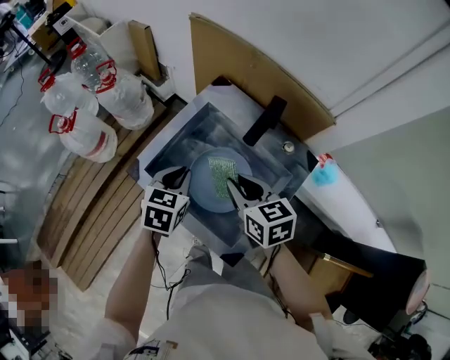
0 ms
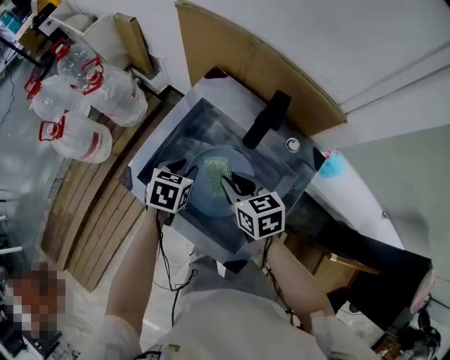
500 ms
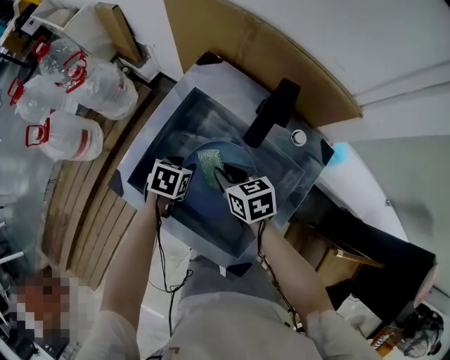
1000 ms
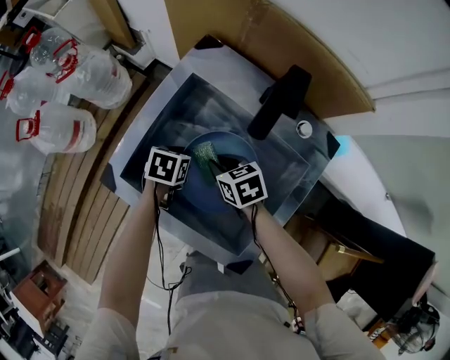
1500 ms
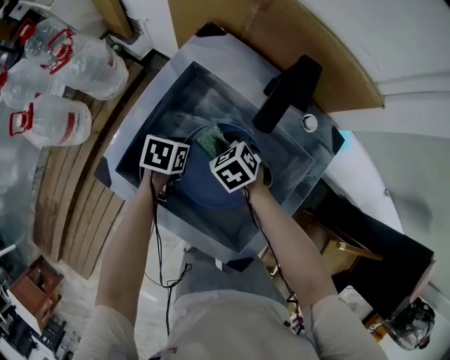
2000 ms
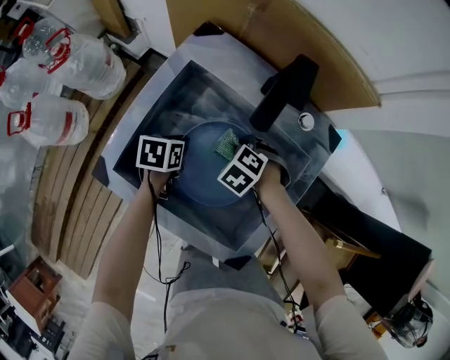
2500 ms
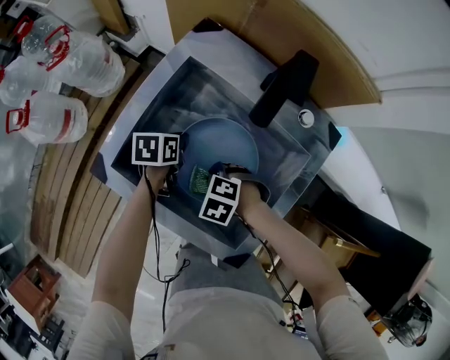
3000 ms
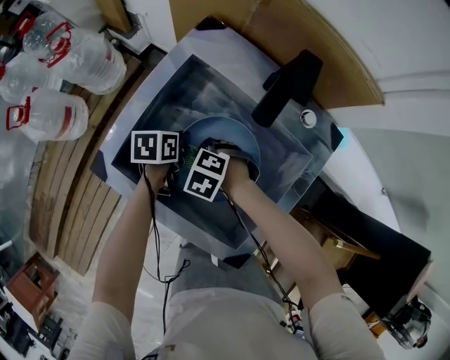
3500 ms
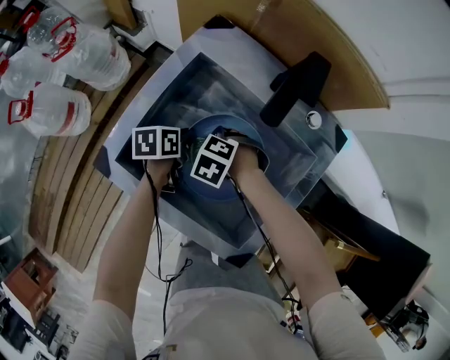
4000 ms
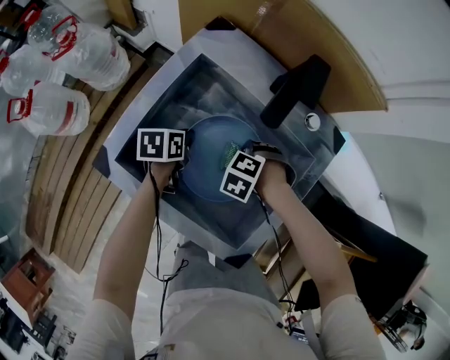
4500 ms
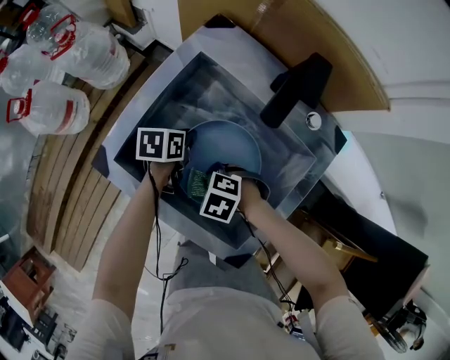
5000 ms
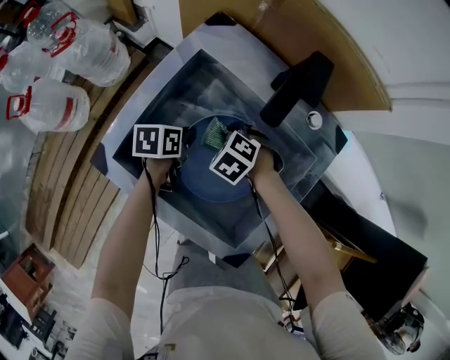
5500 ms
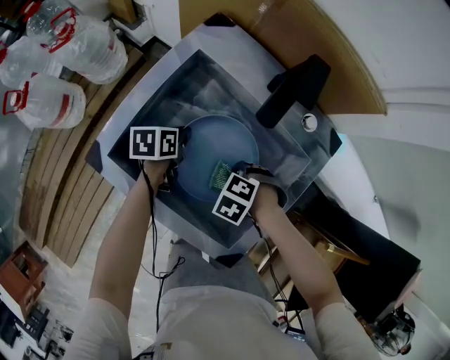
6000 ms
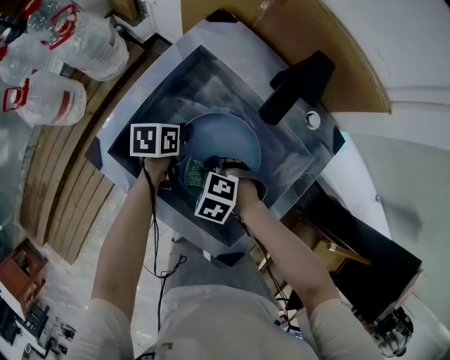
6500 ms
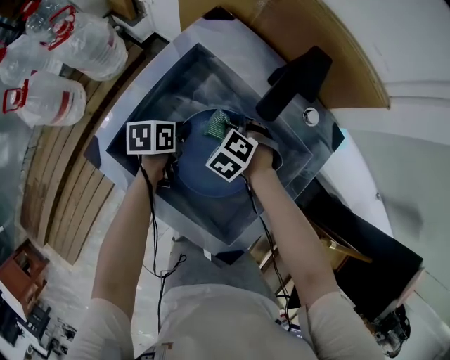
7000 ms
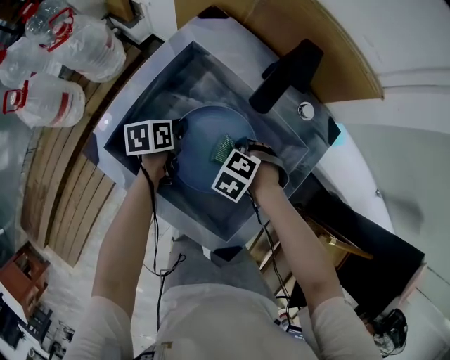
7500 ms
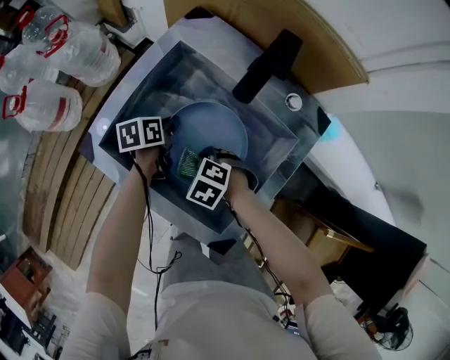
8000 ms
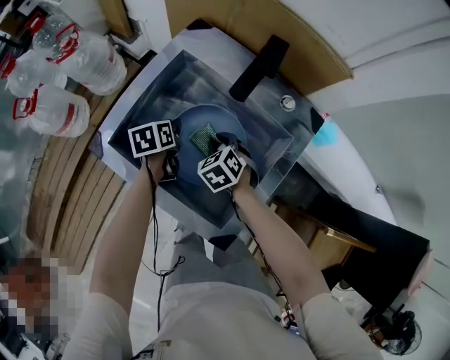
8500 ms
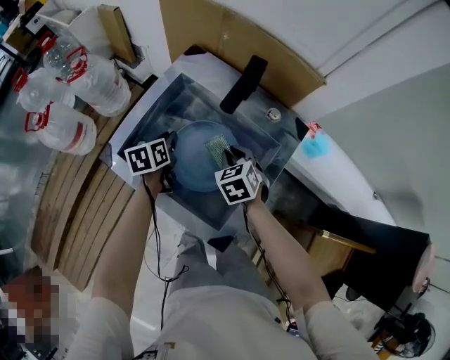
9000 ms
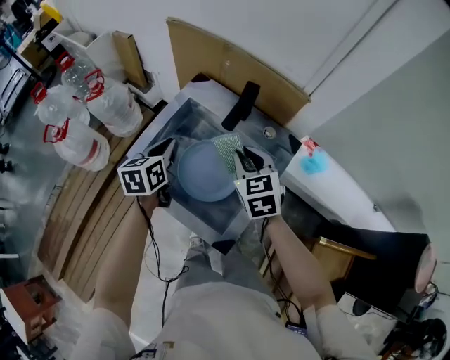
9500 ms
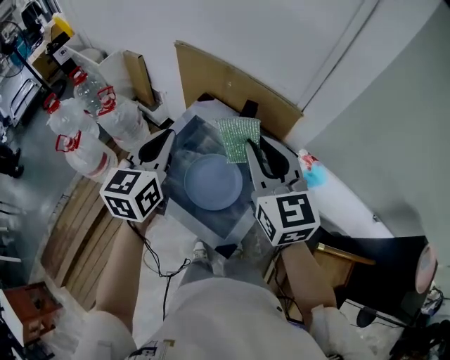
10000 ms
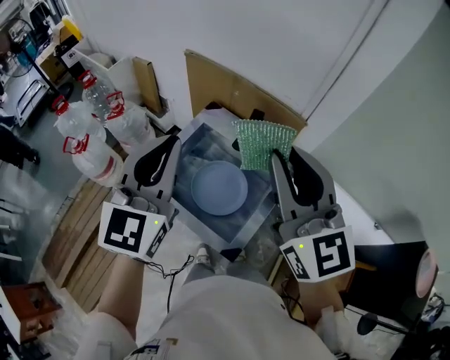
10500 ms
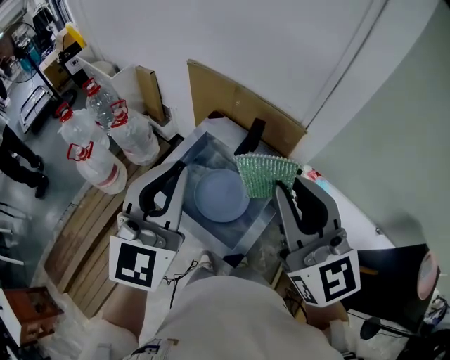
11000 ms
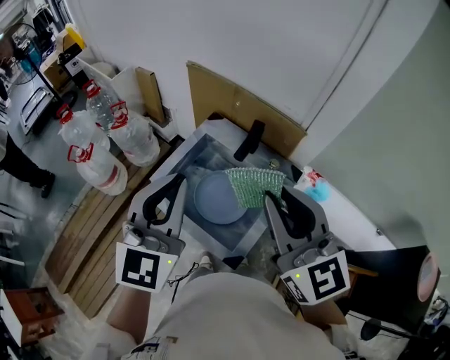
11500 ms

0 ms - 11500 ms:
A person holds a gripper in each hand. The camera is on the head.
0 ms - 2000 ms: The grippers both shift downward by approximately 25 cm. The right gripper points its fingers roughly 30 degrees further downward. The left gripper swivels about 30 degrees, and opens and closes again.
2000 ms - 4000 ms: The left gripper rotates some 20 degrees; the right gripper rotates some 30 degrees.
4000 ms - 6000 ms: The right gripper changes place by roughly 15 cm.
7500 ms - 9500 ms: Both grippers travel together upward, roughly 25 cm. The left gripper swivels some 30 degrees. Meanwhile the right gripper angles its fingers upward, by approximately 50 degrees.
9500 ms - 11500 ms: Both grippers travel together upward and backward, about 35 cm. The left gripper turns by roughly 50 degrees. The right gripper points its fingers roughly 40 degrees further upward.

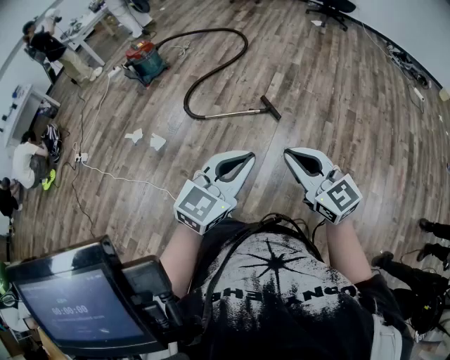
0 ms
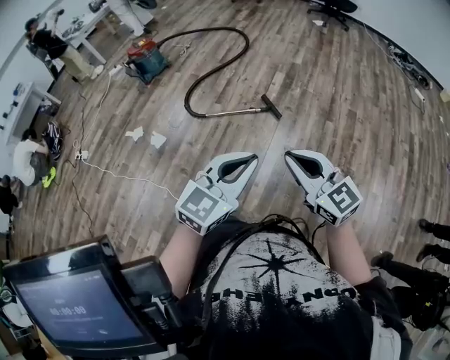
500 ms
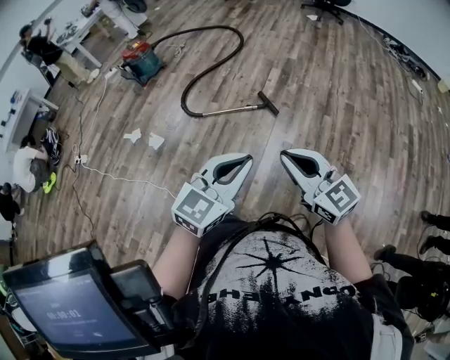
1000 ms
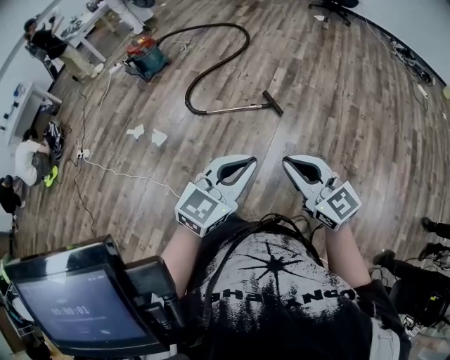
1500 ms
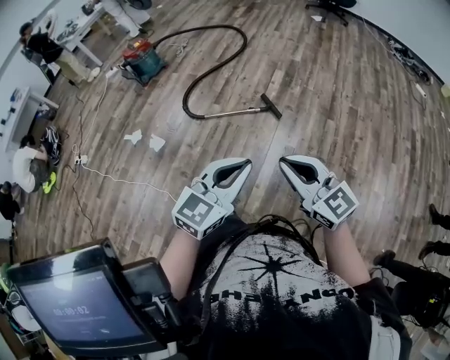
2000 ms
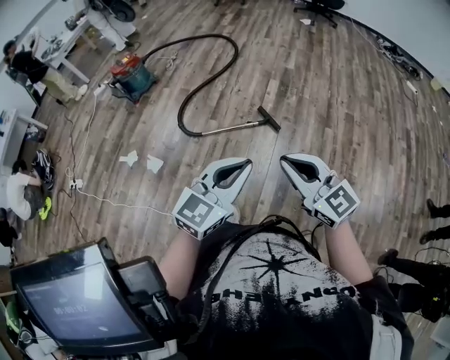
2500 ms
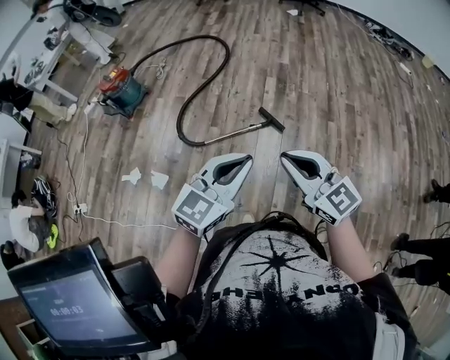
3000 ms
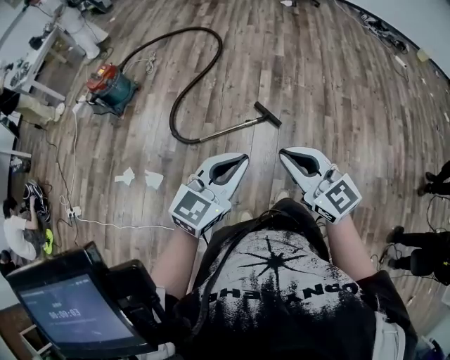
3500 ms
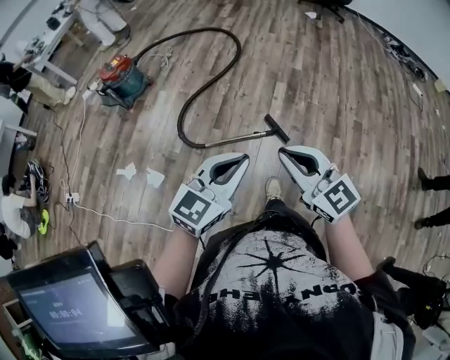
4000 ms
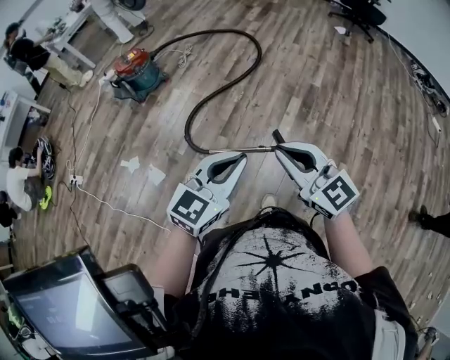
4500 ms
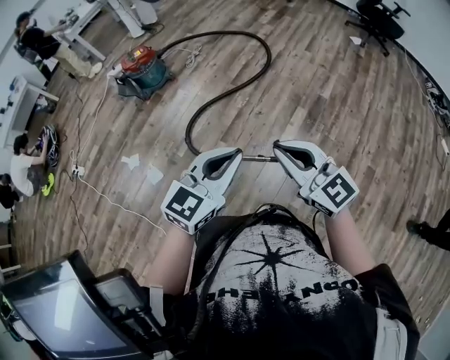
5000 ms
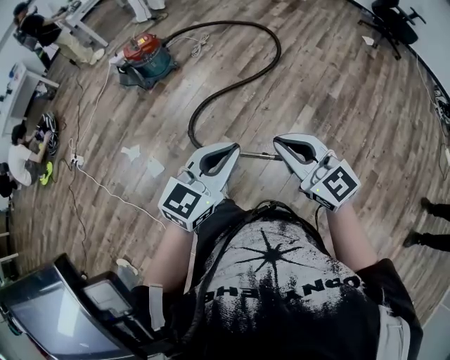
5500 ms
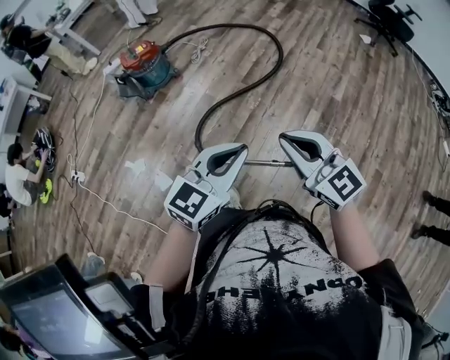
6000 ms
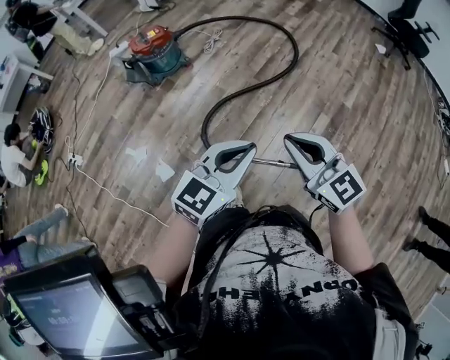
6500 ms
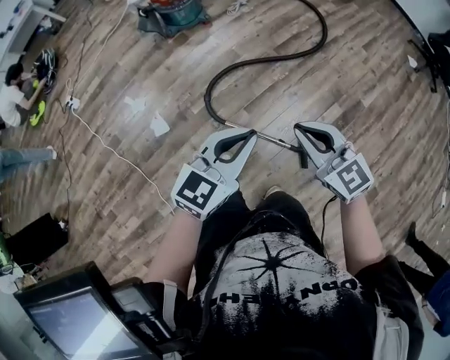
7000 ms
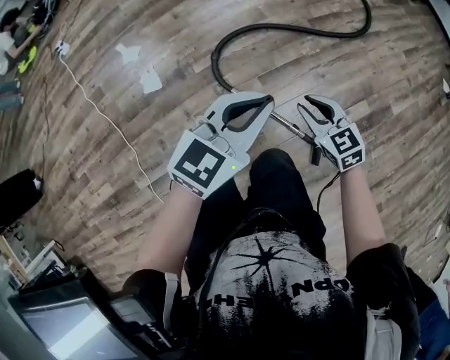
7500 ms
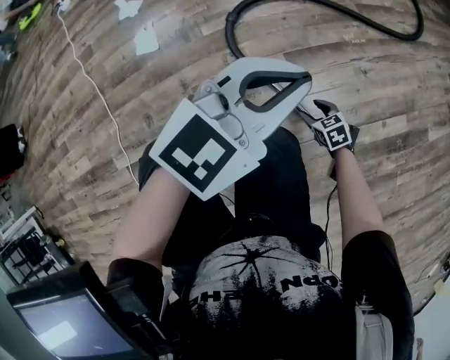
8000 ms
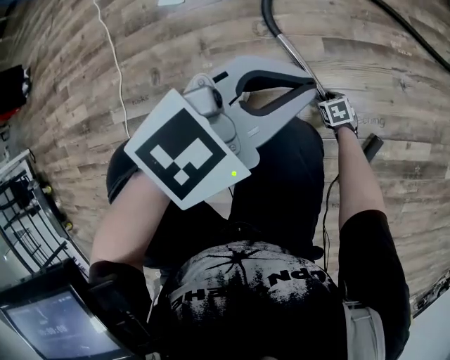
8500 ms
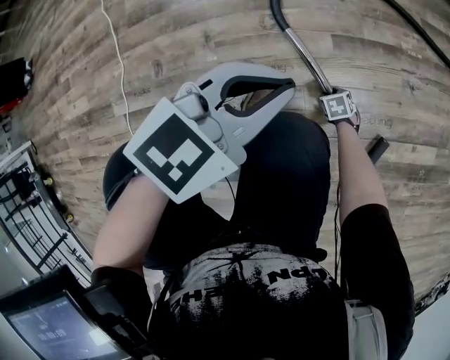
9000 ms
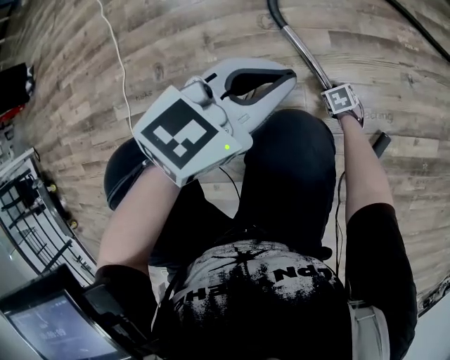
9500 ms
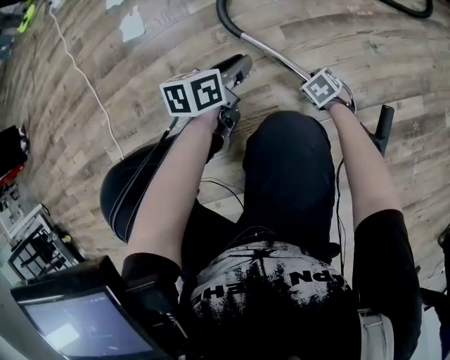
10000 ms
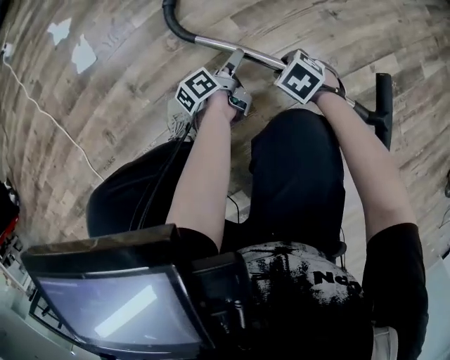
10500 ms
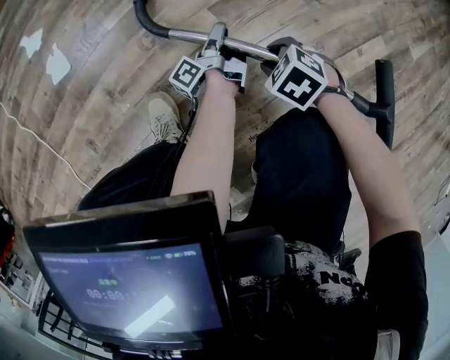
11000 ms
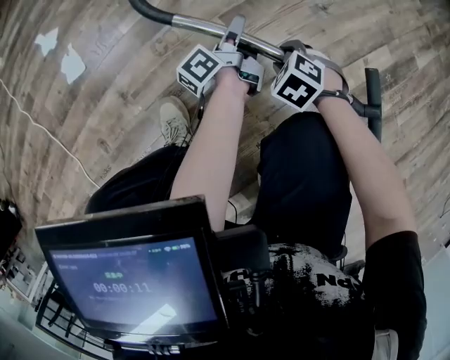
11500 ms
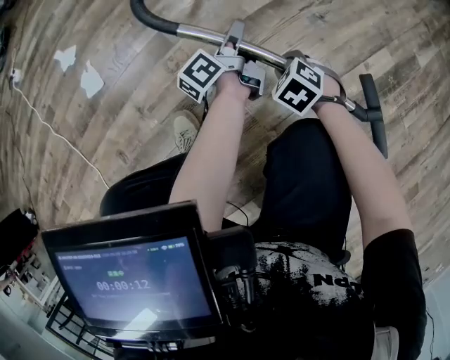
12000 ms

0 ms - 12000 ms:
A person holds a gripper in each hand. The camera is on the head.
0 ms - 2000 ms: The grippers stay close to where they were, moving slightly.
2000 ms - 4000 ms: The two grippers go approximately 35 cm forward and to the left.
4000 ms - 6000 ms: Both grippers move forward, about 30 cm.
6000 ms - 8000 ms: The right gripper travels downward by about 80 cm, angles its fingers downward, by some 50 degrees, and opens up. The left gripper travels downward by roughly 40 cm, and changes its angle by roughly 20 degrees.
8000 ms - 10000 ms: The right gripper moves downward, some 10 cm; the left gripper shifts about 30 cm downward, and rotates around the line of its fingers by some 60 degrees, counterclockwise from behind.
10000 ms - 12000 ms: The right gripper goes some 10 cm upward, and swivels approximately 20 degrees, while the left gripper moves some 15 cm downward and comes back, rotates about 40 degrees, and opens, then closes once more.

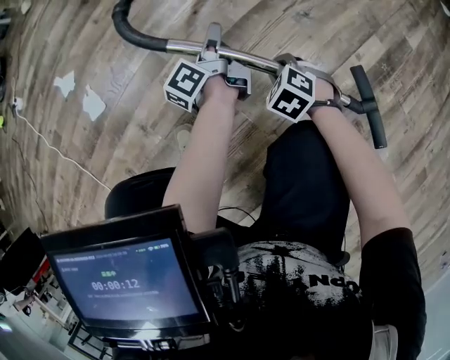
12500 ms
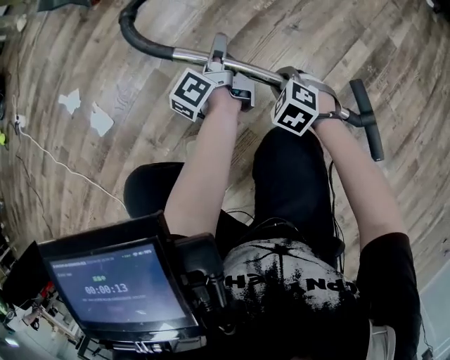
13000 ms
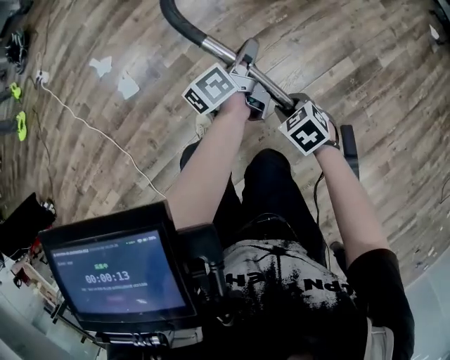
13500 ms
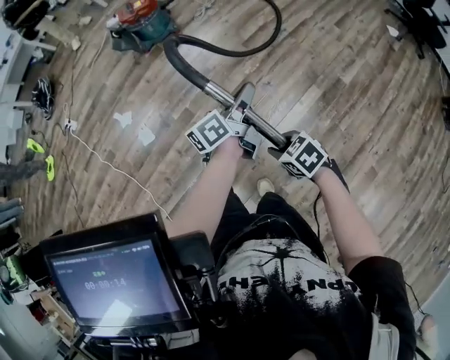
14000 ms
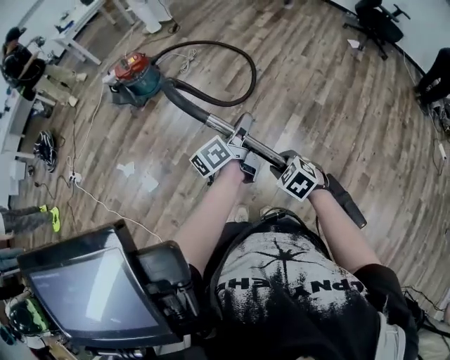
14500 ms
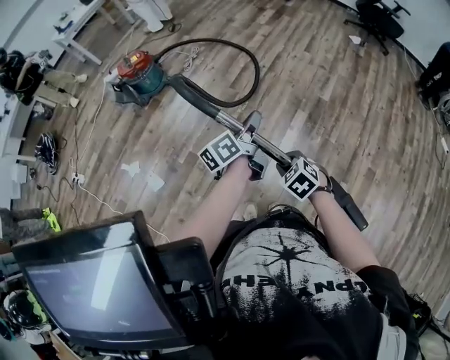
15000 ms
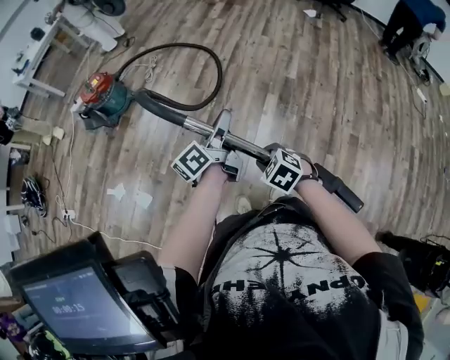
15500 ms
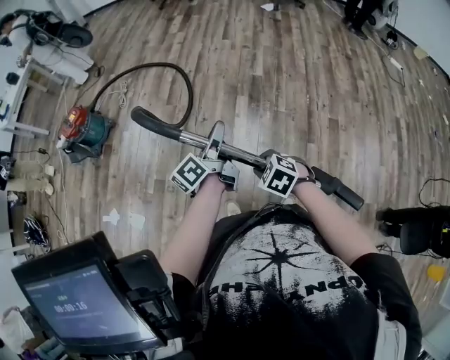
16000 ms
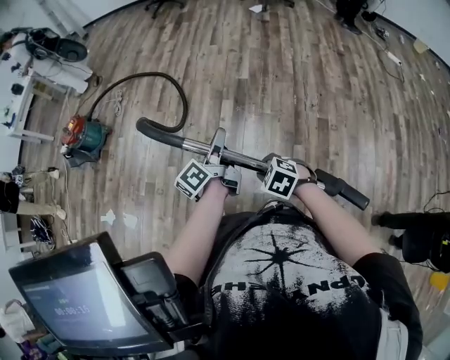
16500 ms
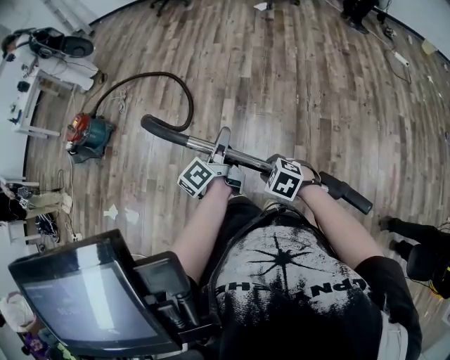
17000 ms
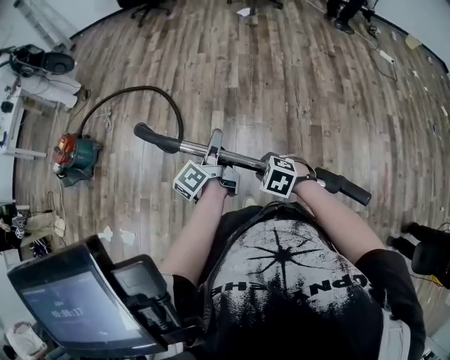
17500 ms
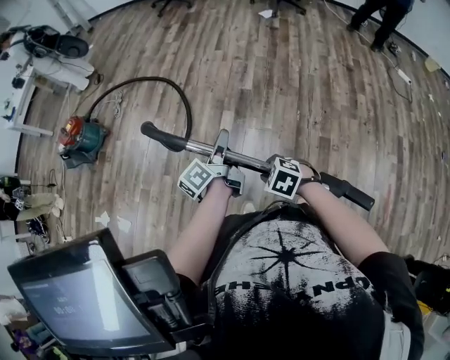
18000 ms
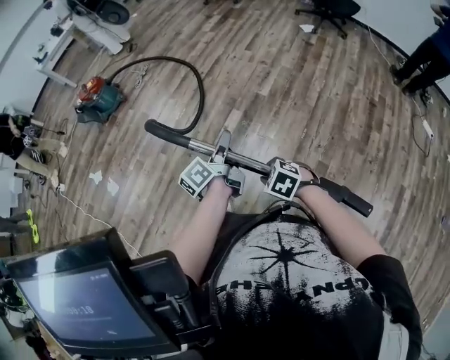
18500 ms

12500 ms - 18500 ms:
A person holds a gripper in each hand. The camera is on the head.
12500 ms - 14500 ms: Both grippers travel together upward, some 60 cm. The right gripper turns by approximately 20 degrees. The left gripper changes its angle by some 30 degrees.
14500 ms - 16500 ms: Both grippers travel together to the right and backward, approximately 30 cm.
16500 ms - 18500 ms: The two grippers go some 20 cm to the right. The right gripper rotates approximately 20 degrees.
